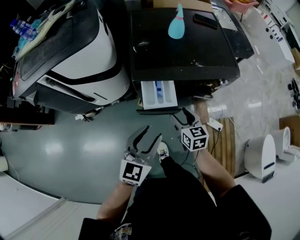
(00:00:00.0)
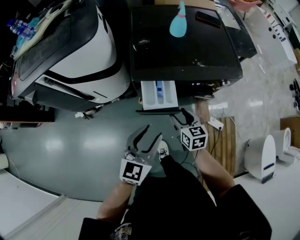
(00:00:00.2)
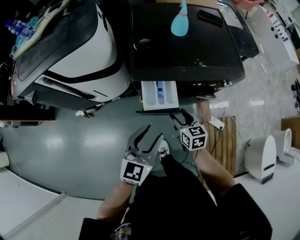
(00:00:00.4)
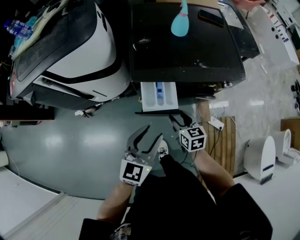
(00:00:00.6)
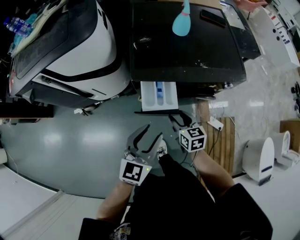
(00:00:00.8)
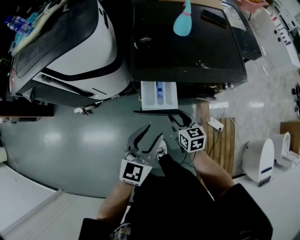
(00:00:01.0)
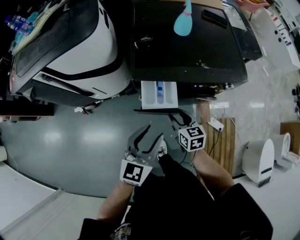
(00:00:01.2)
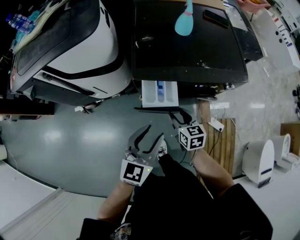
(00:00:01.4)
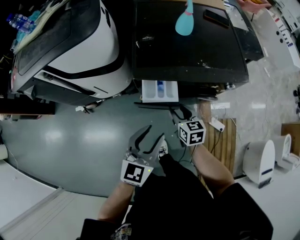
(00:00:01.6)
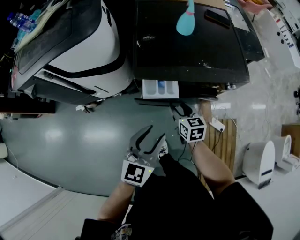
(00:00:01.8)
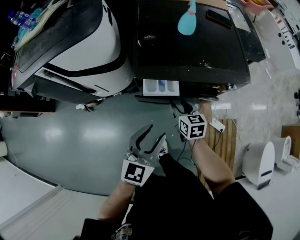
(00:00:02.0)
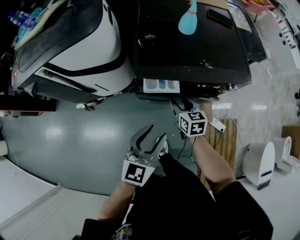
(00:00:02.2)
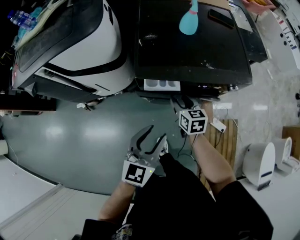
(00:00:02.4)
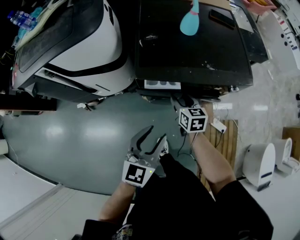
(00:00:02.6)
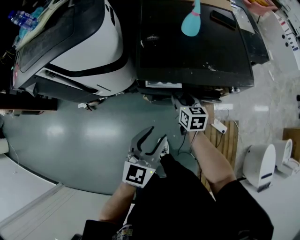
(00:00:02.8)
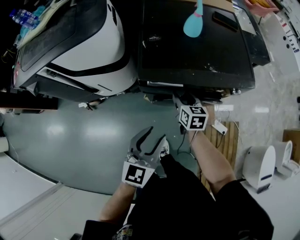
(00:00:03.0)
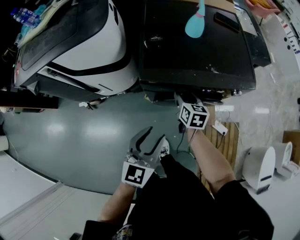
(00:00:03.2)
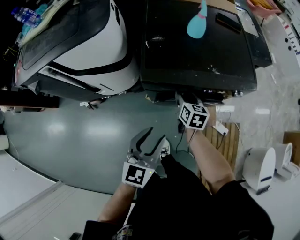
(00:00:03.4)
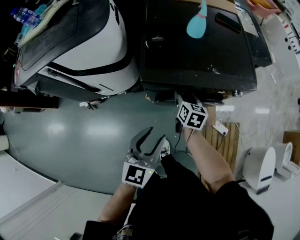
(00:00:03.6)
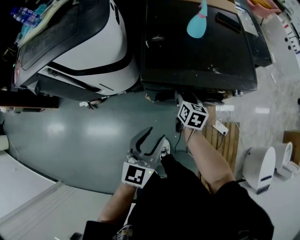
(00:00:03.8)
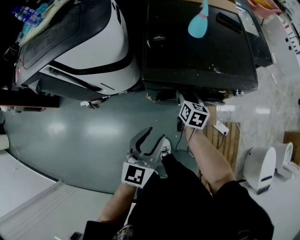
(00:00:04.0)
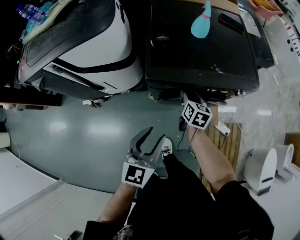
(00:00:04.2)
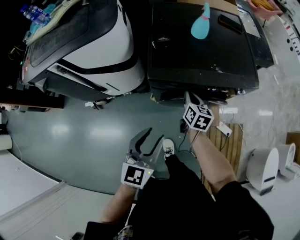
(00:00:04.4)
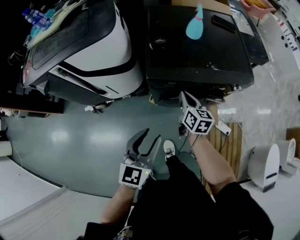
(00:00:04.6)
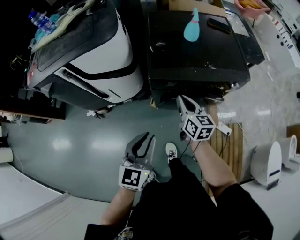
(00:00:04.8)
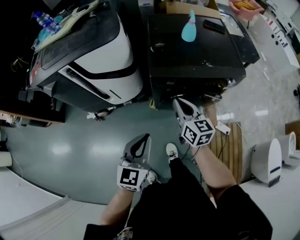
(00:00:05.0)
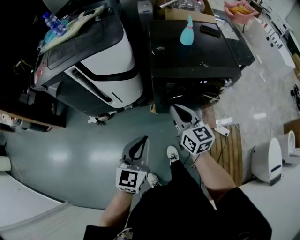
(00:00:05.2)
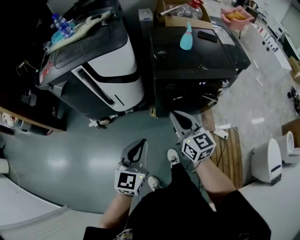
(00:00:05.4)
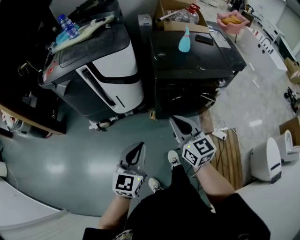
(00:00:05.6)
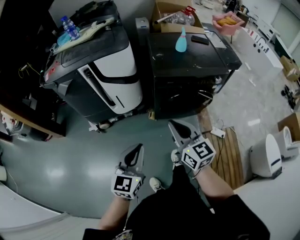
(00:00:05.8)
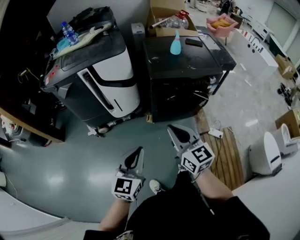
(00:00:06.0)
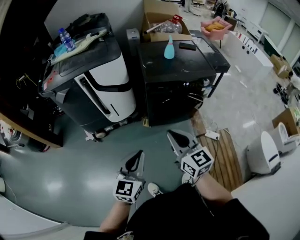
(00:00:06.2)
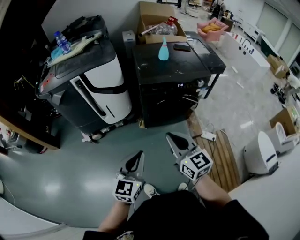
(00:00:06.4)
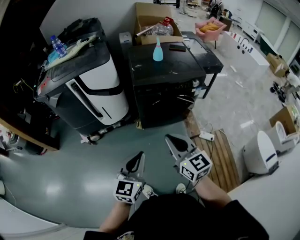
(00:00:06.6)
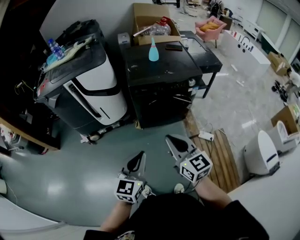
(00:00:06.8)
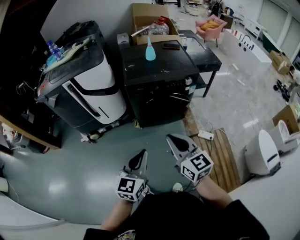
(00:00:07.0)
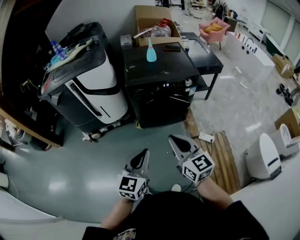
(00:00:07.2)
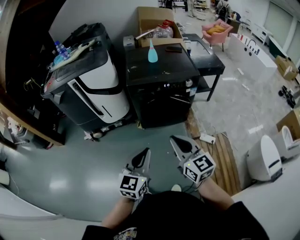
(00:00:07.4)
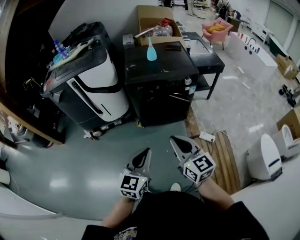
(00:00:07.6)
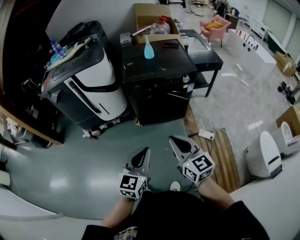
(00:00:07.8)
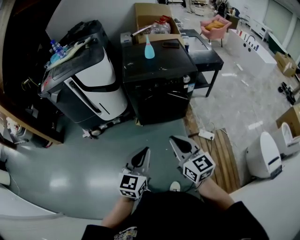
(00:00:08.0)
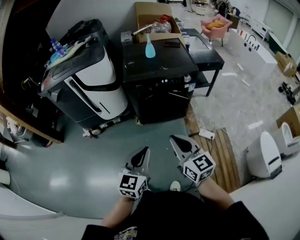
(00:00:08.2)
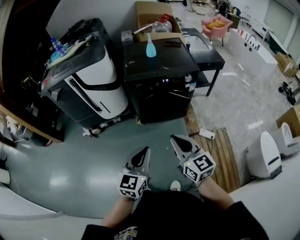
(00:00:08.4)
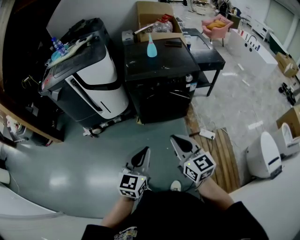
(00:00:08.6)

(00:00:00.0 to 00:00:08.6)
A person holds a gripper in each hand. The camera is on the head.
00:00:00.0 - 00:00:01.4: The grippers make only small movements.
00:00:01.4 - 00:00:02.8: The right gripper is displaced forward by some 10 cm.
00:00:02.8 - 00:00:04.4: The right gripper closes up; the left gripper changes place by about 5 cm.
00:00:04.4 - 00:00:05.8: The right gripper heads backward, upward and to the left, covering some 50 cm, and turns by about 40 degrees. Meanwhile the left gripper heads backward, to the left and upward, covering some 30 cm, and closes up.
00:00:05.8 - 00:00:07.2: The two grippers go approximately 25 cm to the right and backward.
00:00:07.2 - 00:00:08.6: The grippers move only a little.

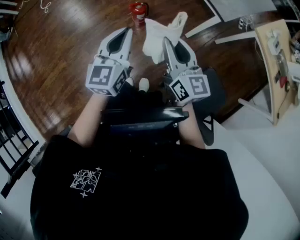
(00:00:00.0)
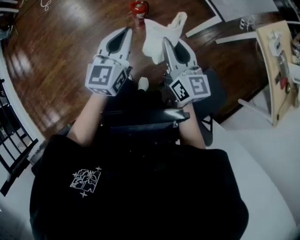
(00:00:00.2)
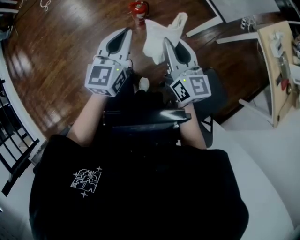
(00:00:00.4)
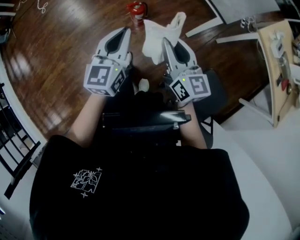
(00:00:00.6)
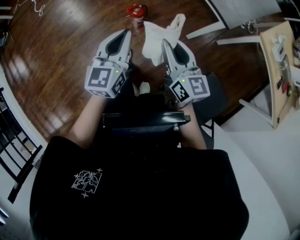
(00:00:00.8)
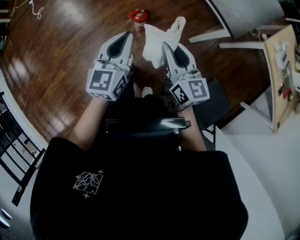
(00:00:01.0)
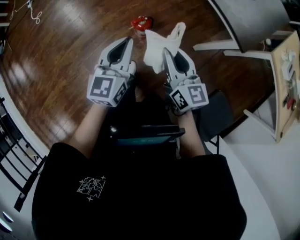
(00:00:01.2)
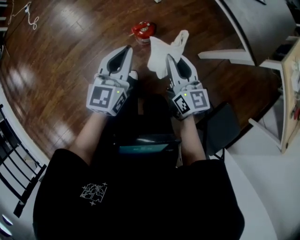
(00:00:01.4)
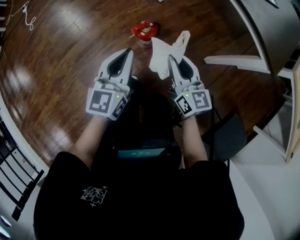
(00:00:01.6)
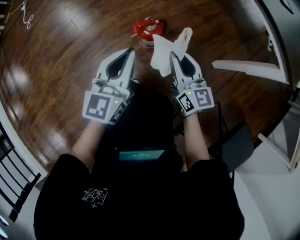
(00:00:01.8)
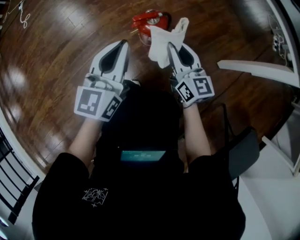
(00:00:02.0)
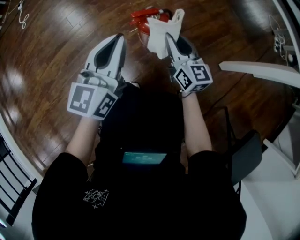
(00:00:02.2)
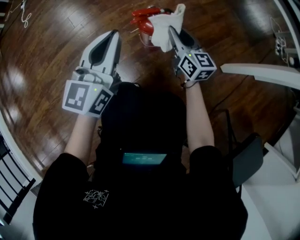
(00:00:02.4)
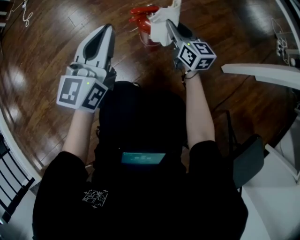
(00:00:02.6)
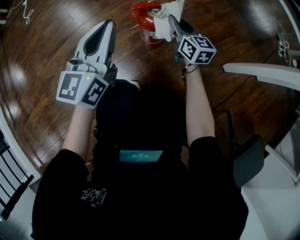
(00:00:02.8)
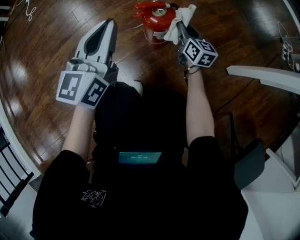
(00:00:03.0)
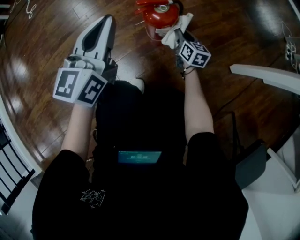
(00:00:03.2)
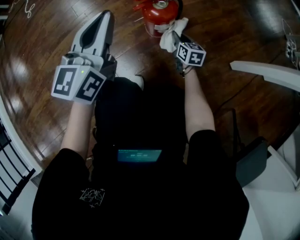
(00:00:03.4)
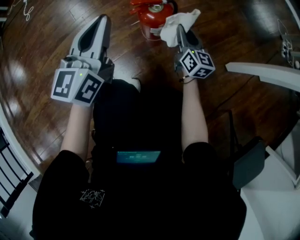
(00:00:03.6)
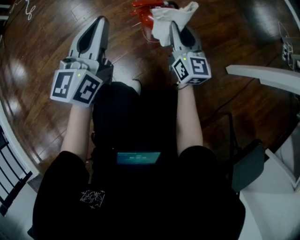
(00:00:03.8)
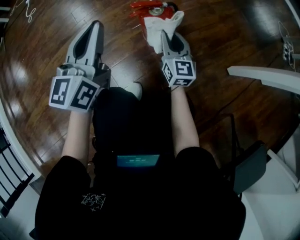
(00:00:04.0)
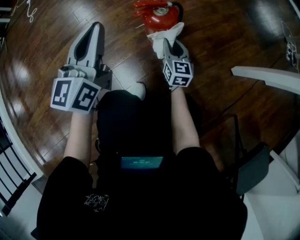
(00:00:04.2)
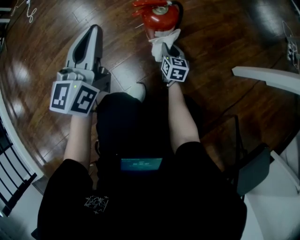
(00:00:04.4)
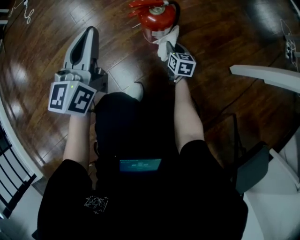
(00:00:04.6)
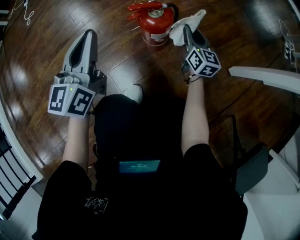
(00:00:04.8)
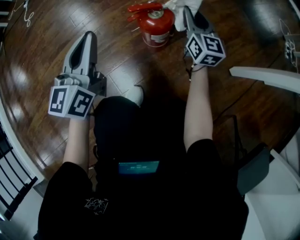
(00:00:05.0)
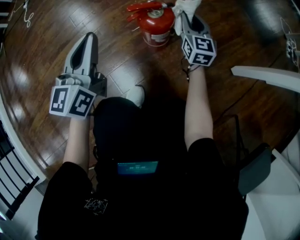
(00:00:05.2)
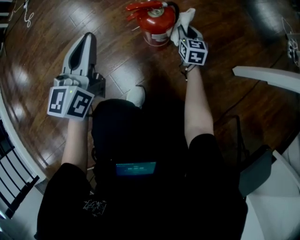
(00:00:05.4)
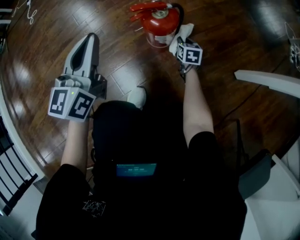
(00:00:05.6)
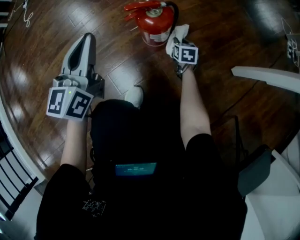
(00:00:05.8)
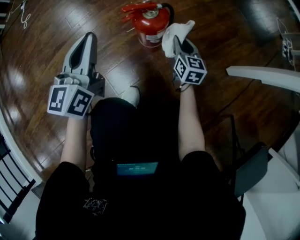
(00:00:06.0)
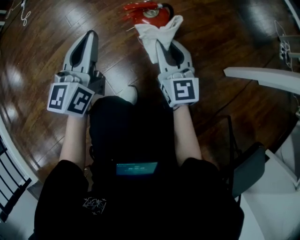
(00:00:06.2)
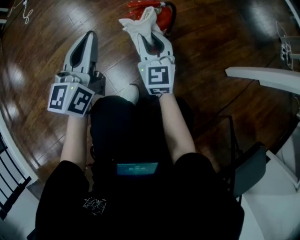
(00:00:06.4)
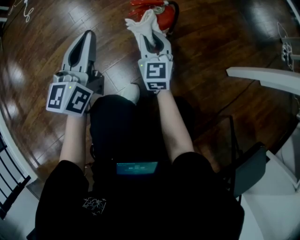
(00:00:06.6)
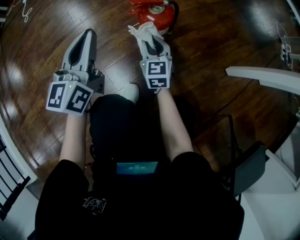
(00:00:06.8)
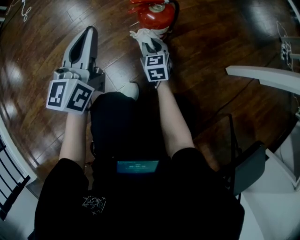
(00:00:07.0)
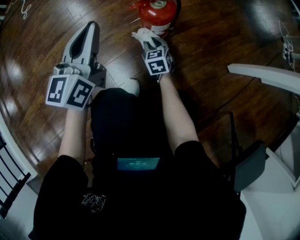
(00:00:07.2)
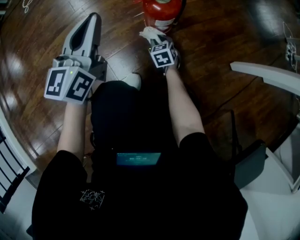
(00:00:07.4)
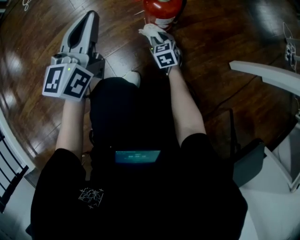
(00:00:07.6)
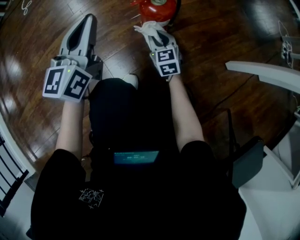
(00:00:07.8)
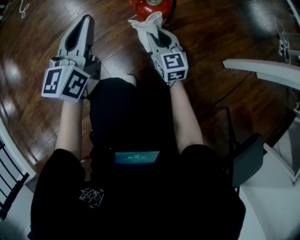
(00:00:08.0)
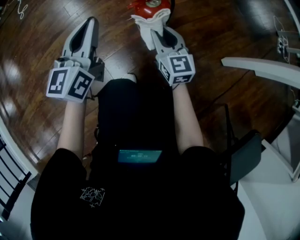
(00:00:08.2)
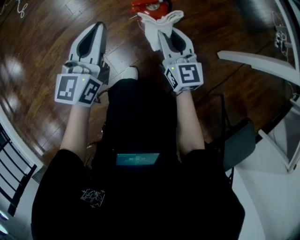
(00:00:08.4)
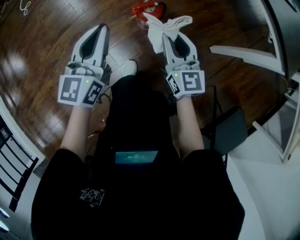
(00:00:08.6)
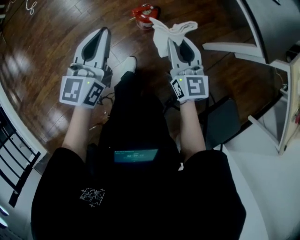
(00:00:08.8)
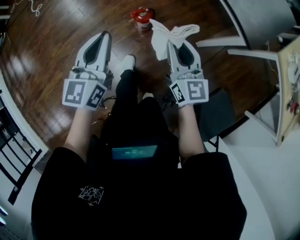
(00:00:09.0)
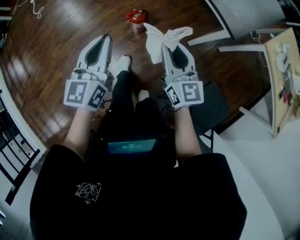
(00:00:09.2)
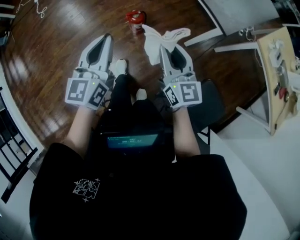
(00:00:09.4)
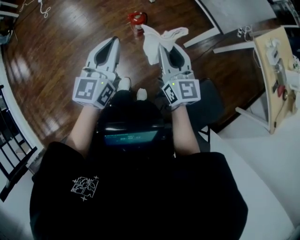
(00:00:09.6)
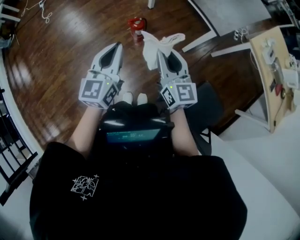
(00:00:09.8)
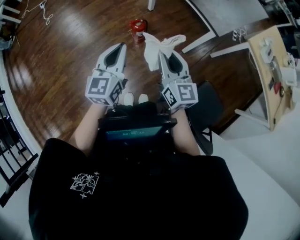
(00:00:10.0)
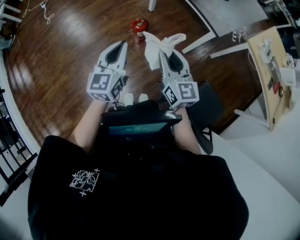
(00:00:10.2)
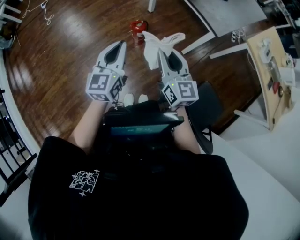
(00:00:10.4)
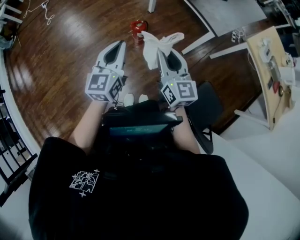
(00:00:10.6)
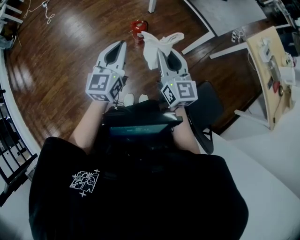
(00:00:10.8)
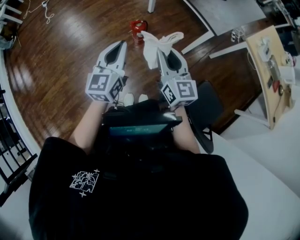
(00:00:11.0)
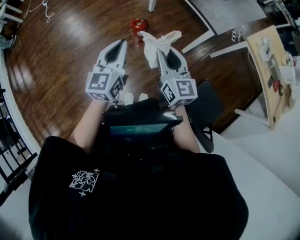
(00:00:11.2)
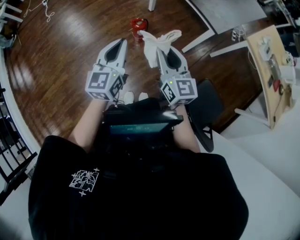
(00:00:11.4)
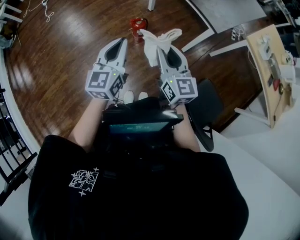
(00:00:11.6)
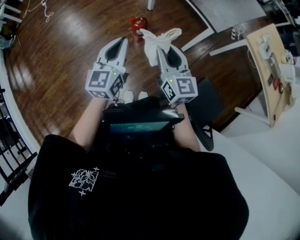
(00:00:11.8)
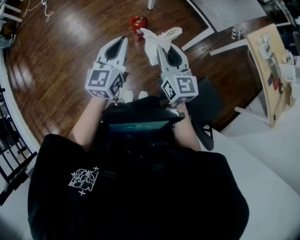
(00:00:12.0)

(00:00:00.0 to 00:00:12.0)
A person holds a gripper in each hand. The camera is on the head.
00:00:00.0 - 00:00:01.6: Both grippers move downward and forward, some 40 cm.
00:00:01.6 - 00:00:03.0: The left gripper travels downward by some 15 cm; the right gripper heads downward and forward, covering some 35 cm.
00:00:03.0 - 00:00:04.4: The right gripper swings up and down, roughly 25 cm each way, with 2 reversals.
00:00:04.4 - 00:00:06.0: The right gripper swings up and down, some 25 cm each way, with 2 reversals.
00:00:06.0 - 00:00:07.6: The right gripper travels to the left and downward by about 15 cm, and changes its angle by about 30 degrees.
00:00:07.6 - 00:00:09.0: The left gripper moves upward, approximately 40 cm. The right gripper travels upward by some 70 cm, and tilts its fingers about 30 degrees upward.
00:00:09.0 - 00:00:10.4: The left gripper travels backward and upward by roughly 20 cm. The right gripper heads upward and backward, covering about 25 cm.
00:00:10.4 - 00:00:12.0: The grippers move only a little.

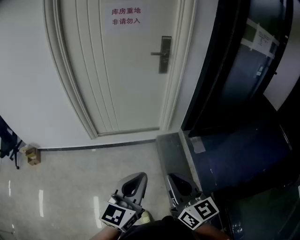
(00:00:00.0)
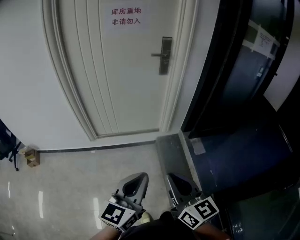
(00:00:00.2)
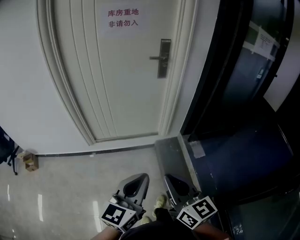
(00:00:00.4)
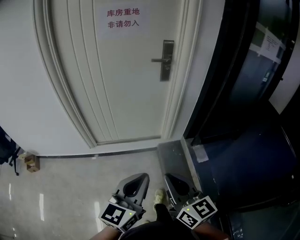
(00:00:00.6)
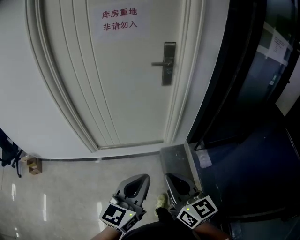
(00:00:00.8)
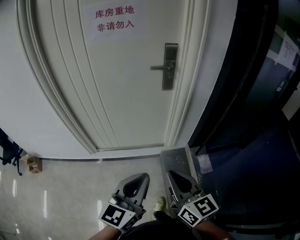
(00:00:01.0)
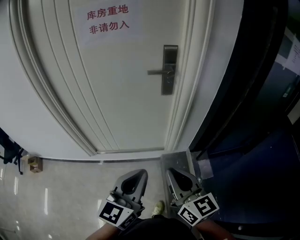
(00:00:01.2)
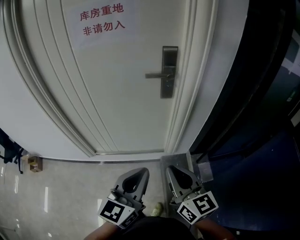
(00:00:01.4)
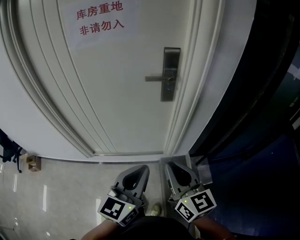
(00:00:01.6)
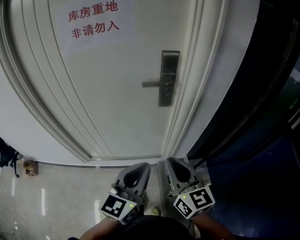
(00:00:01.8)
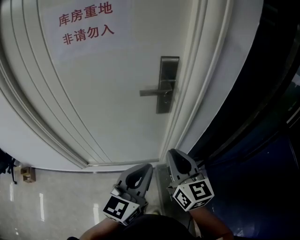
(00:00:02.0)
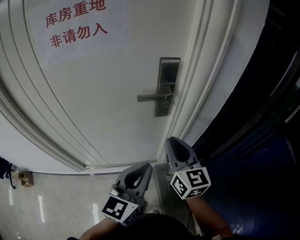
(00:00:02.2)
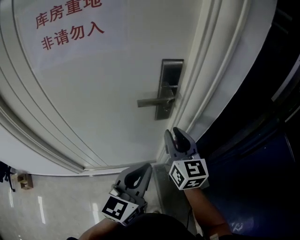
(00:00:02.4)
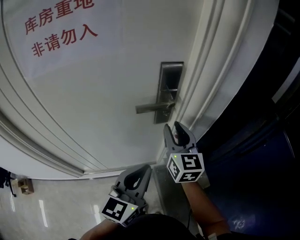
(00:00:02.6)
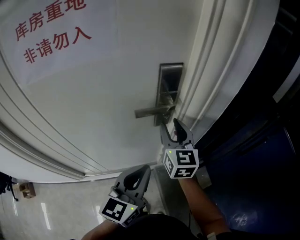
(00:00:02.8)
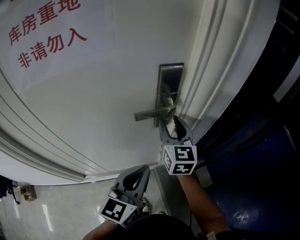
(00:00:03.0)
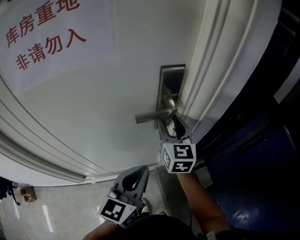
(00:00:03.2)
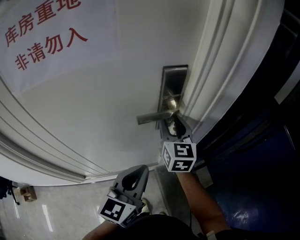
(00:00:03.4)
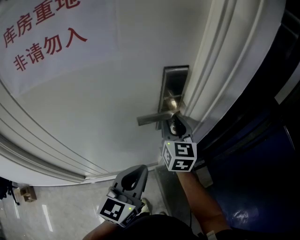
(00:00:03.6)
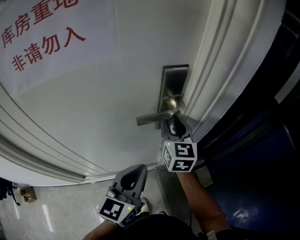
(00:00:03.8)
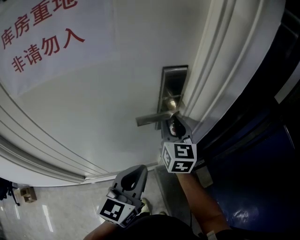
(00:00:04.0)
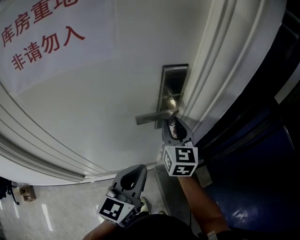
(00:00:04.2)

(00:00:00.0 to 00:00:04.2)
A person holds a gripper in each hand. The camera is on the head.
00:00:00.0 - 00:00:01.4: Both grippers travel together forward, some 35 cm.
00:00:01.4 - 00:00:02.8: The left gripper is displaced forward by approximately 25 cm. The right gripper shifts approximately 40 cm forward, turns by about 30 degrees, and opens its fingers.
00:00:02.8 - 00:00:04.2: The grippers stay close to where they were, moving slightly.
